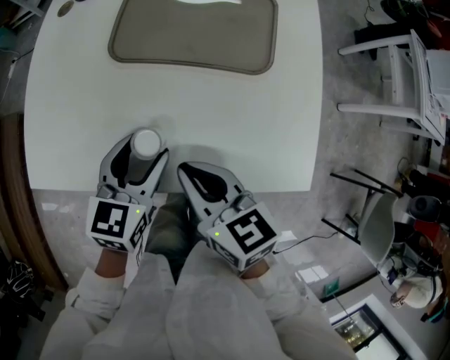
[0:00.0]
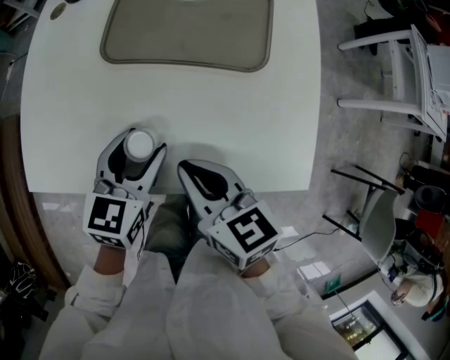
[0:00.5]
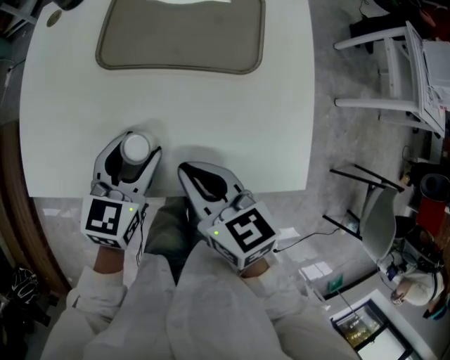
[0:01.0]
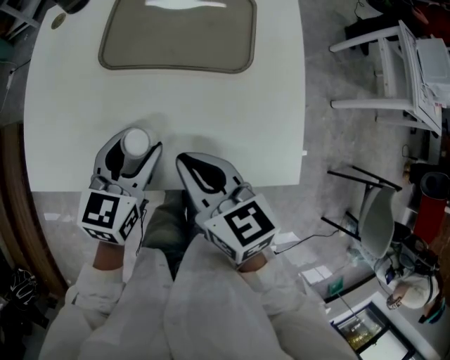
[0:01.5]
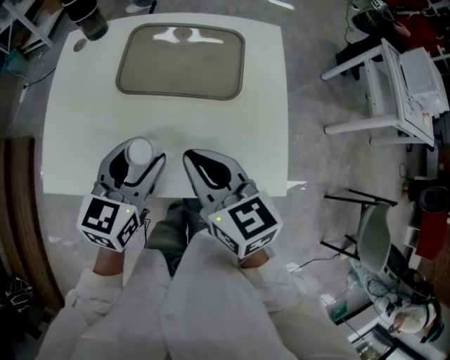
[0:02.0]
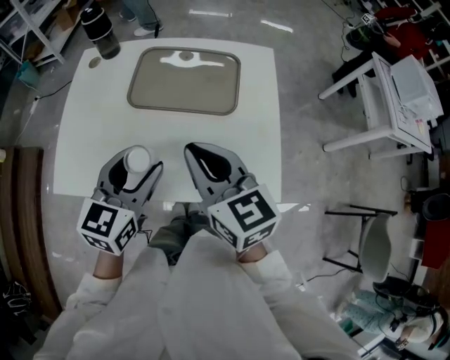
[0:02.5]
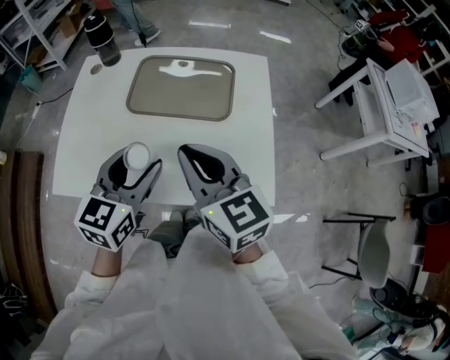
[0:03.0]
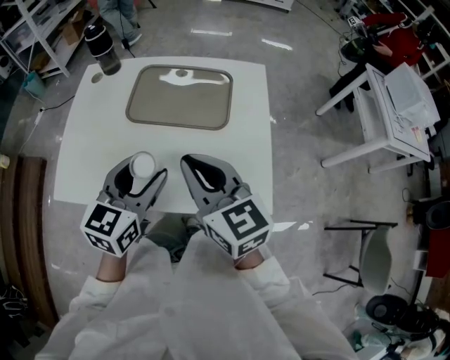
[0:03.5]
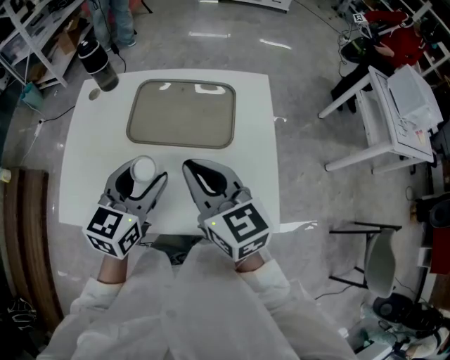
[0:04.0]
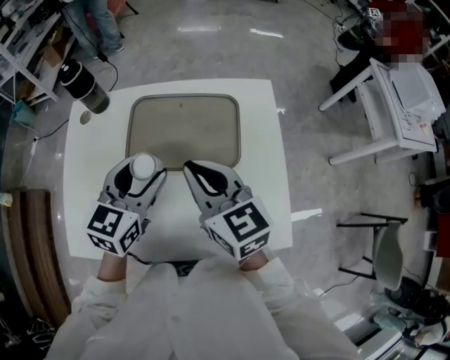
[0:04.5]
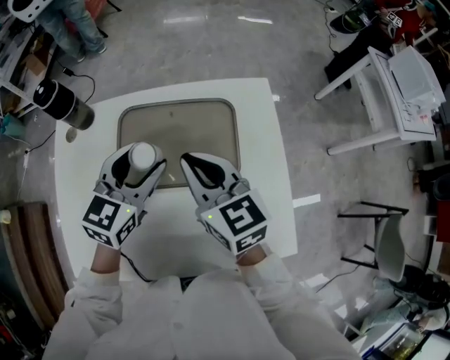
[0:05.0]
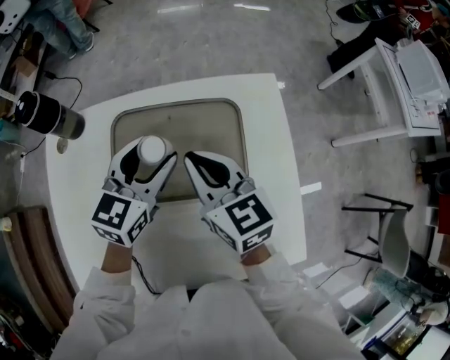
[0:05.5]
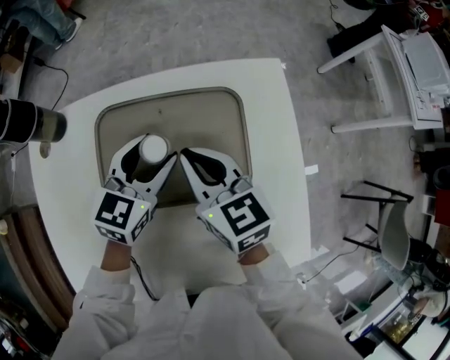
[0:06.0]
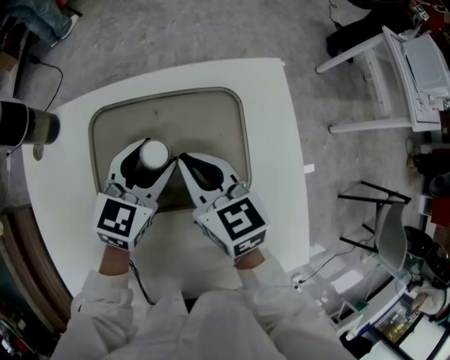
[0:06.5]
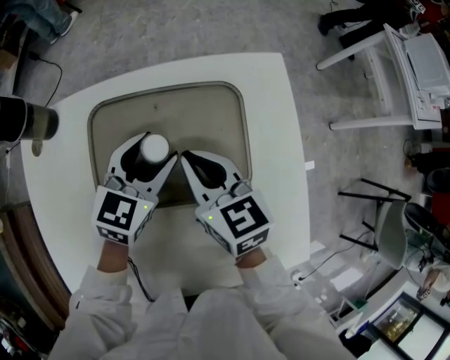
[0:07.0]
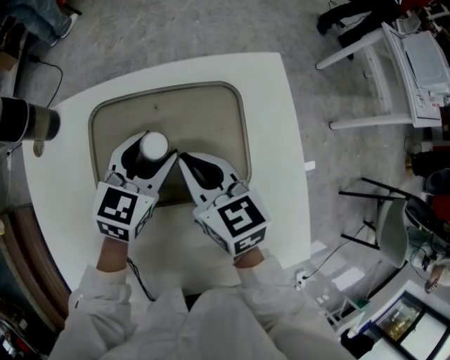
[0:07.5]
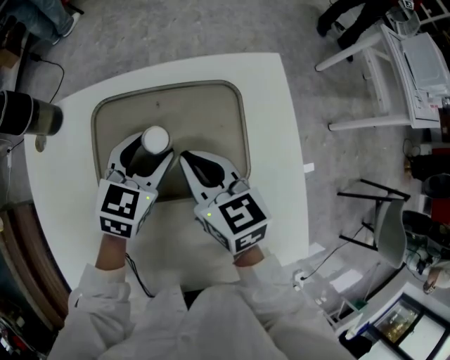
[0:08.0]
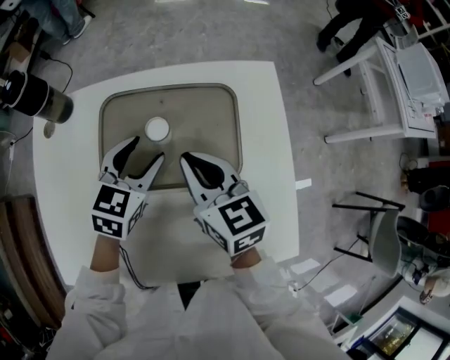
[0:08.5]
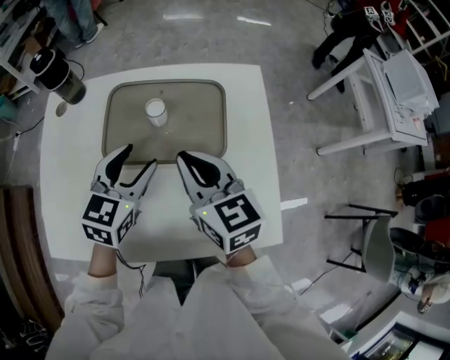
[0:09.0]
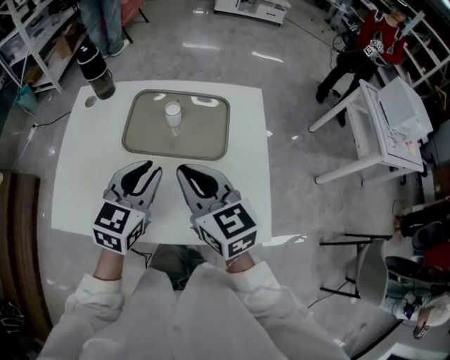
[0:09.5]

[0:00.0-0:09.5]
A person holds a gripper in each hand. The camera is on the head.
0:00.0 to 0:02.0: The right gripper heads upward and to the right, covering some 10 cm; the left gripper moves upward, roughly 10 cm.
0:02.0 to 0:04.0: The left gripper shifts roughly 5 cm upward, while the right gripper shifts about 10 cm upward and forward.
0:04.0 to 0:05.5: The left gripper travels forward by about 25 cm. The right gripper shifts approximately 25 cm forward and downward.
0:05.5 to 0:07.5: Both grippers travel together downward, approximately 10 cm.
0:07.5 to 0:09.5: The two grippers go roughly 15 cm backward, upward and to the left. The left gripper closes up.

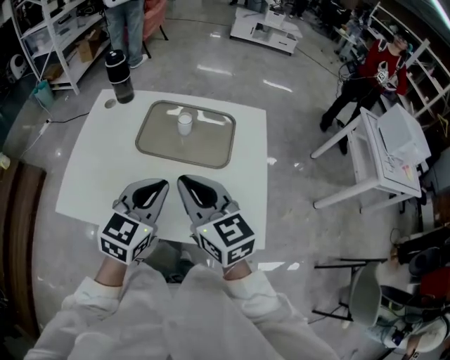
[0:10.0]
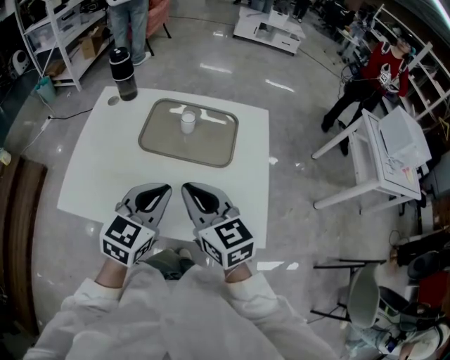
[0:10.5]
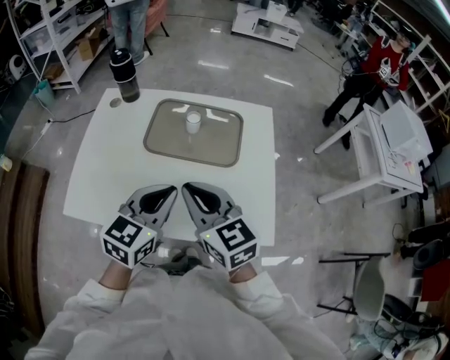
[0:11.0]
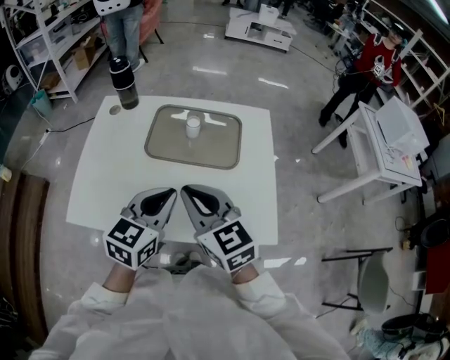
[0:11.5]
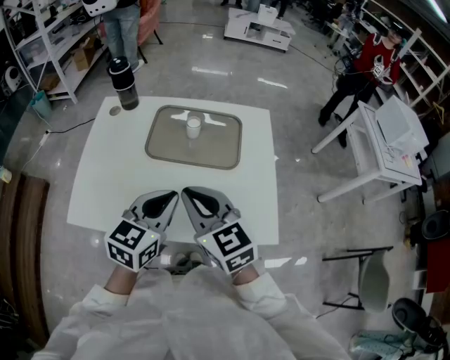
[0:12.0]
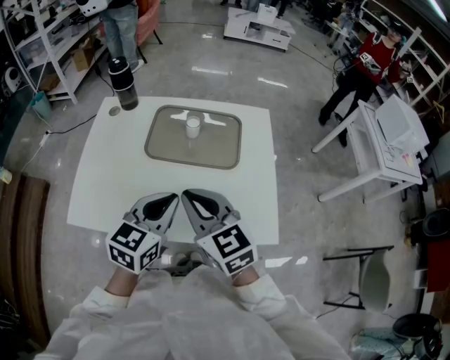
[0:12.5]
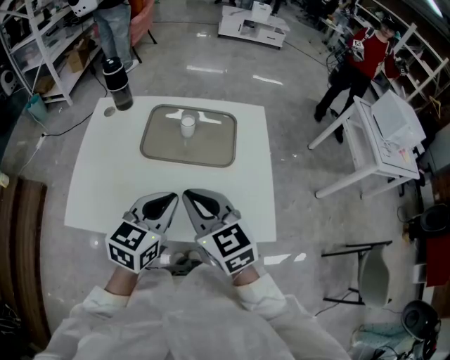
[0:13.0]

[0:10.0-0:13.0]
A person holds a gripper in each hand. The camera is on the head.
0:10.0 to 0:11.5: The right gripper shifts about 5 cm to the left.
0:11.5 to 0:13.0: The grippers make only small movements.

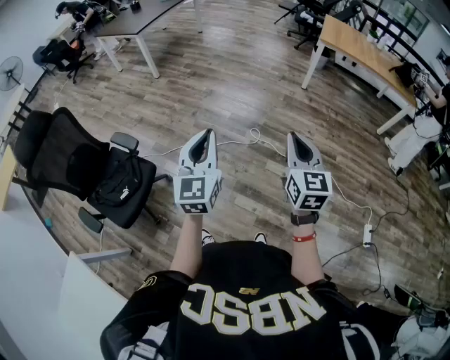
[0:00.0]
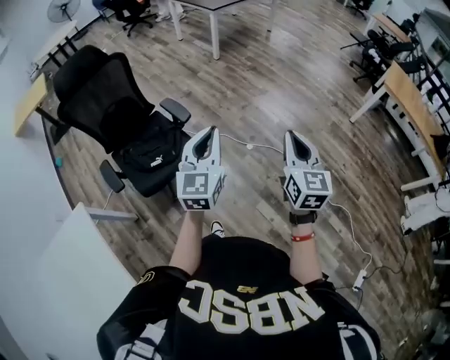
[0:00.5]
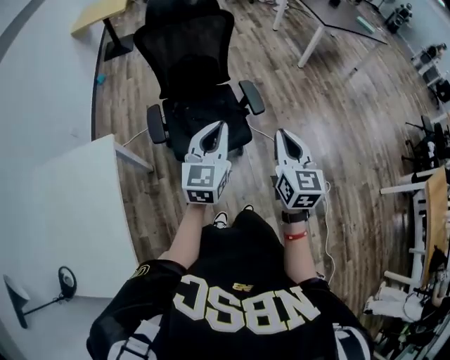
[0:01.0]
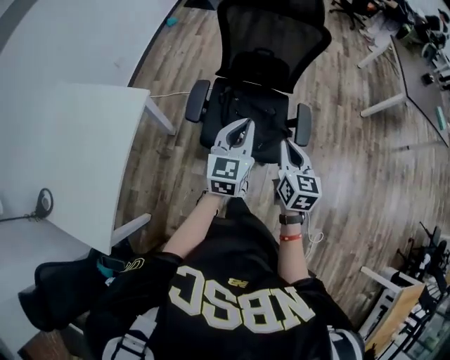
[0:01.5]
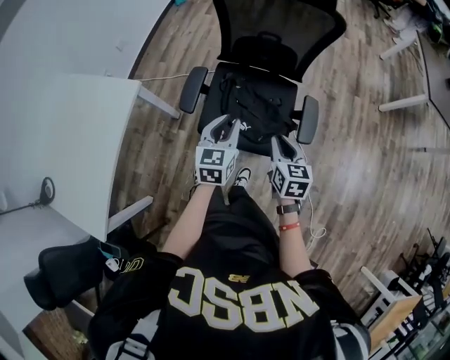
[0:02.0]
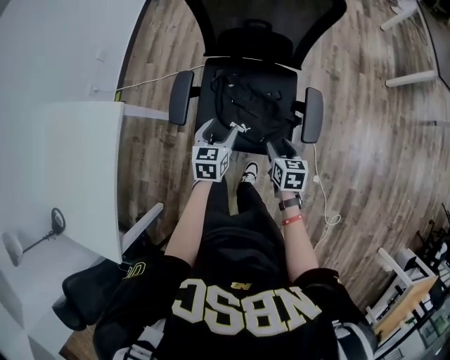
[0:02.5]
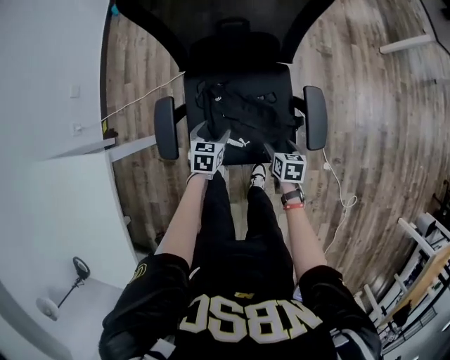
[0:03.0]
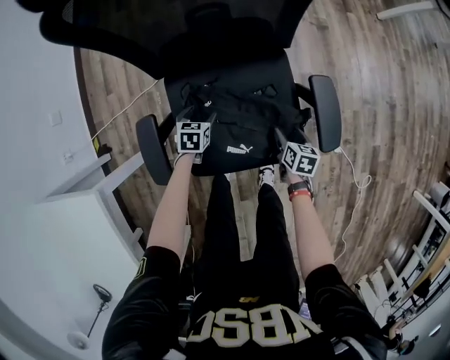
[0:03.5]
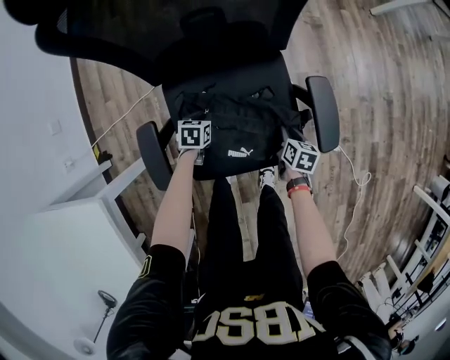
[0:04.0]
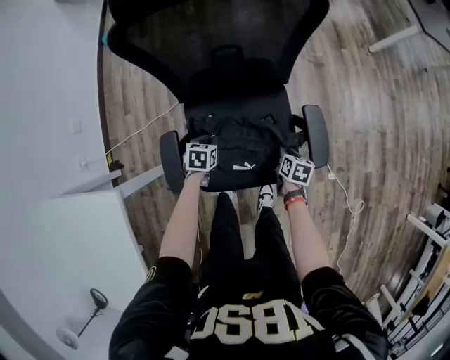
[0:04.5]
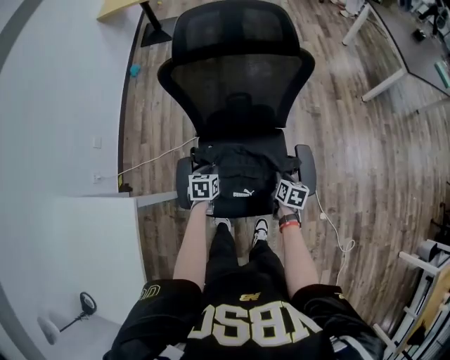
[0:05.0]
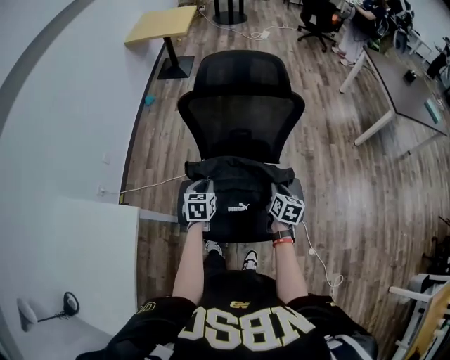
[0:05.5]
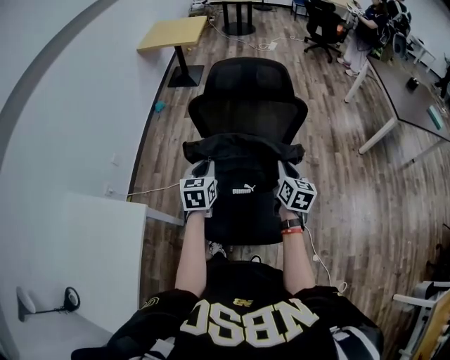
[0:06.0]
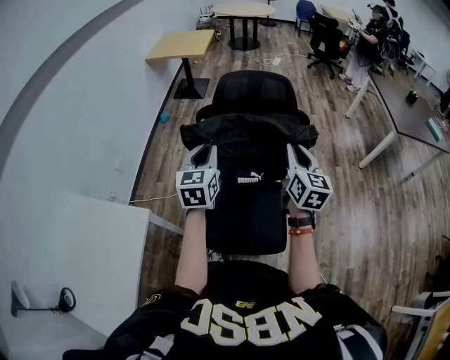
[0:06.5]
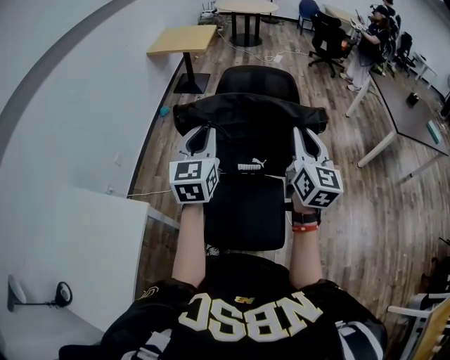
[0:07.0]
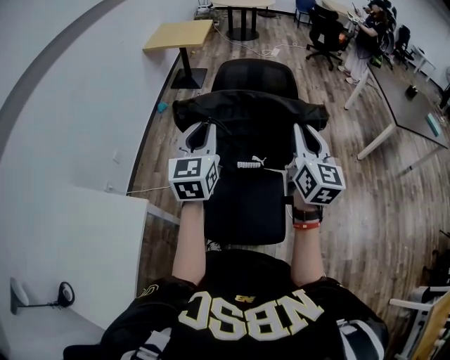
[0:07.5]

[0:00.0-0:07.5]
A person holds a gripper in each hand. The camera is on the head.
0:00.0 to 0:02.0: The pair of grippers is taken roughly 70 cm. The left gripper rotates roughly 80 degrees, while the right gripper swivels roughly 80 degrees.
0:02.0 to 0:04.0: The two grippers go roughly 40 cm downward. The left gripper tips its fingers downward by about 40 degrees, and opens, then closes again; the right gripper changes its angle by about 50 degrees, and opens, then closes once more.
0:04.0 to 0:05.5: The two grippers go roughly 35 cm upward. The right gripper turns by approximately 20 degrees. The left gripper turns by approximately 30 degrees.
0:05.5 to 0:07.5: The two grippers go approximately 35 cm upward. The left gripper tips its fingers upward by roughly 40 degrees. Meanwhile the right gripper points its fingers about 40 degrees further upward.

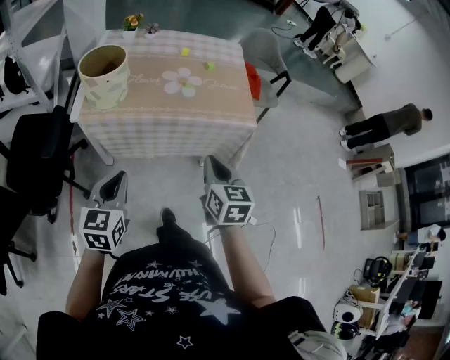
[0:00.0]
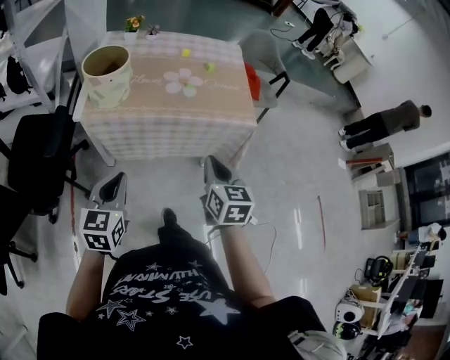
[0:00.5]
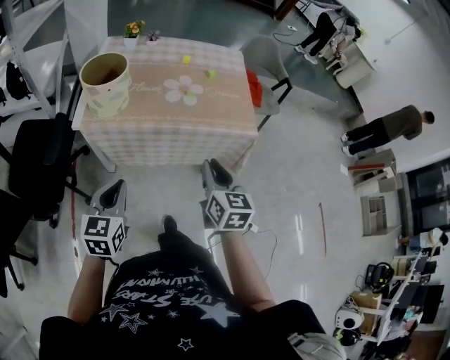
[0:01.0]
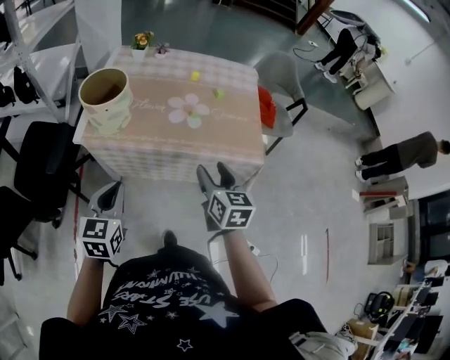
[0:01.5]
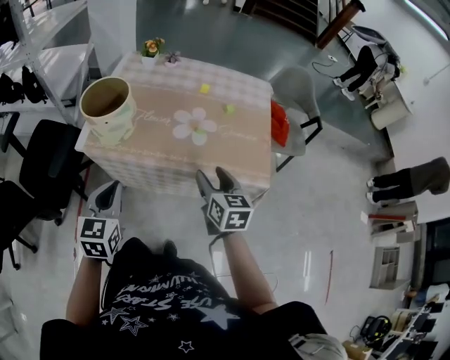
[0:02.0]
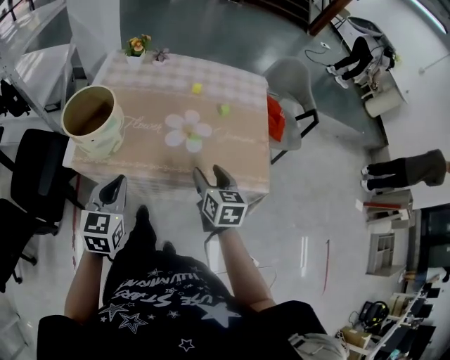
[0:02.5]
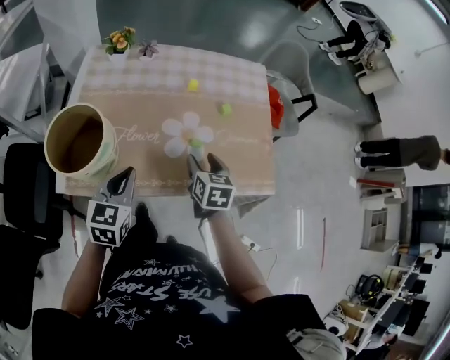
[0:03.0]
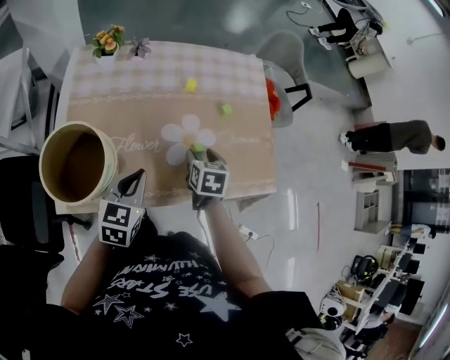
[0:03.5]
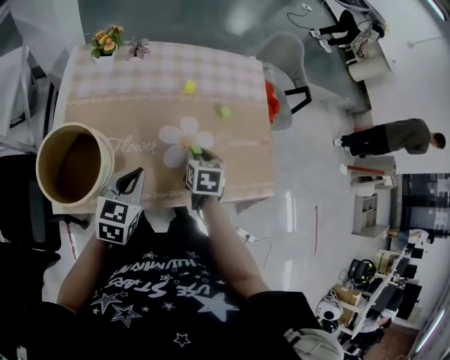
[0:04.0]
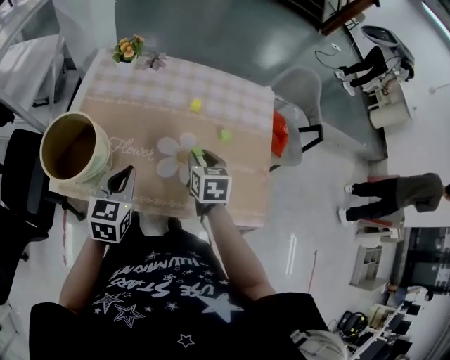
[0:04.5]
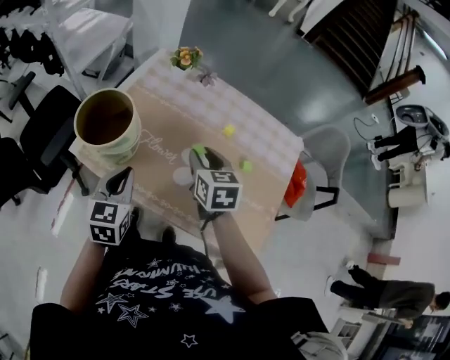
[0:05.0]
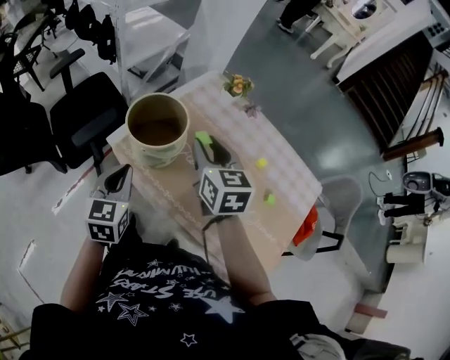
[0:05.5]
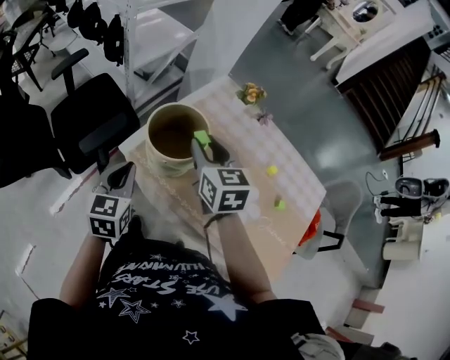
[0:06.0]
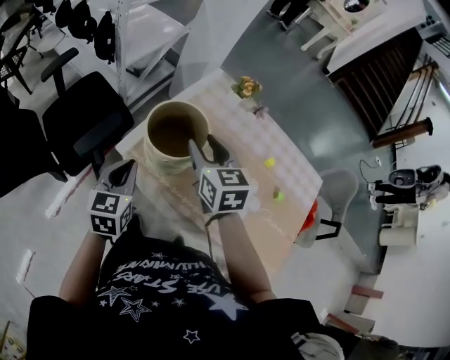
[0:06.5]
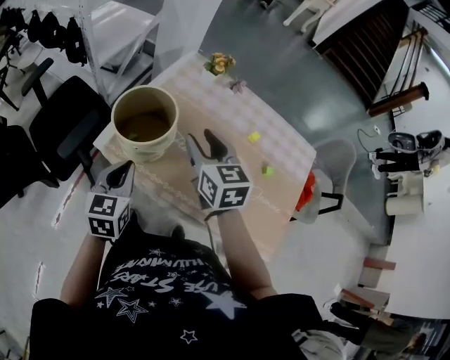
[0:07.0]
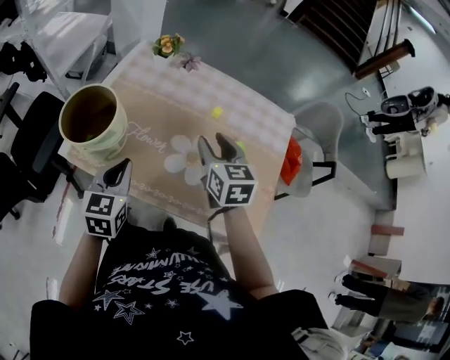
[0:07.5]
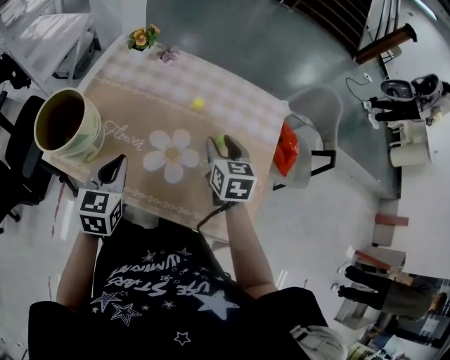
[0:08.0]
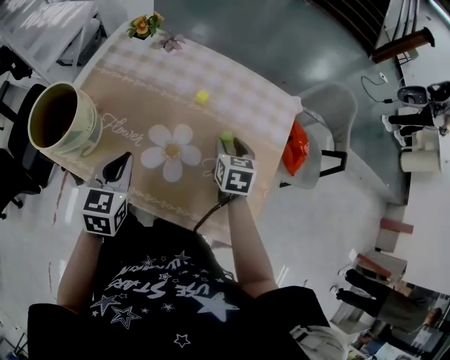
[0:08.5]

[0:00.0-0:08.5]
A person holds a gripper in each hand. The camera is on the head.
0:00.0 to 0:02.0: Both grippers move forward, approximately 15 cm. The right gripper opens its fingers.
0:02.0 to 0:04.0: The left gripper ends up some 25 cm from where it was, and turns by approximately 30 degrees, while the right gripper shifts by approximately 25 cm, changes its angle by approximately 30 degrees, and closes up.
0:04.0 to 0:06.5: The left gripper ends up some 25 cm from where it was, and rotates roughly 50 degrees, while the right gripper shifts by about 35 cm, and turns by some 60 degrees.
0:06.5 to 0:08.5: The right gripper shifts roughly 50 cm to the right and downward, and swivels about 40 degrees; the left gripper heads to the right, covering approximately 30 cm, and changes its angle by roughly 20 degrees.
